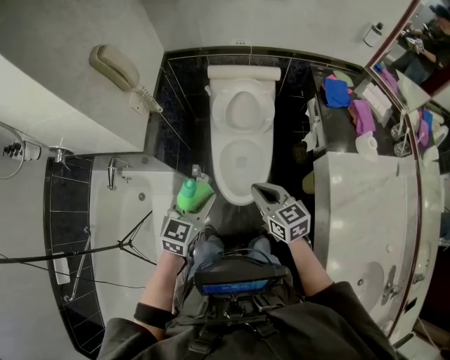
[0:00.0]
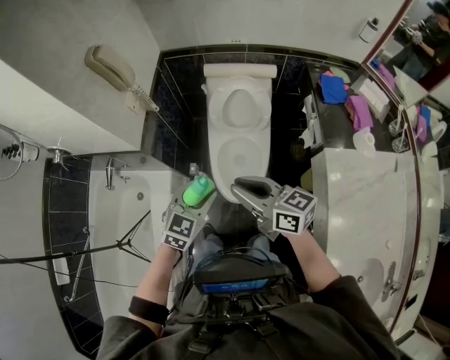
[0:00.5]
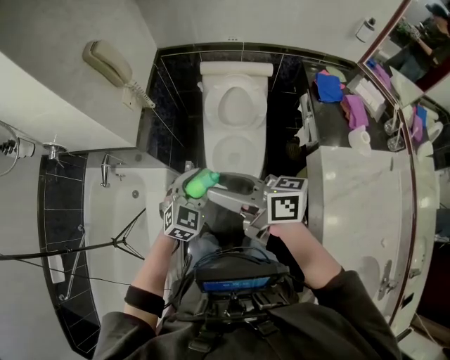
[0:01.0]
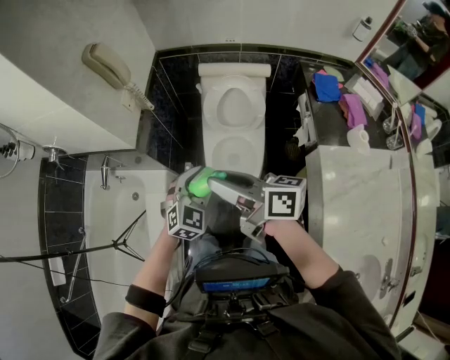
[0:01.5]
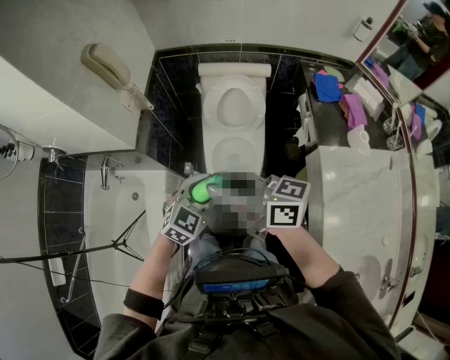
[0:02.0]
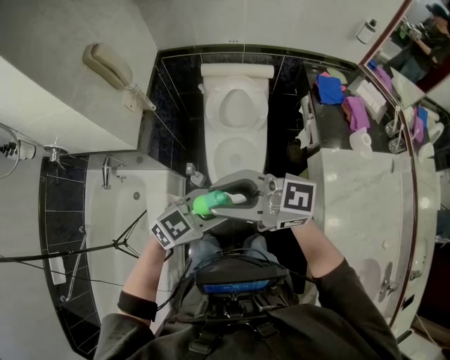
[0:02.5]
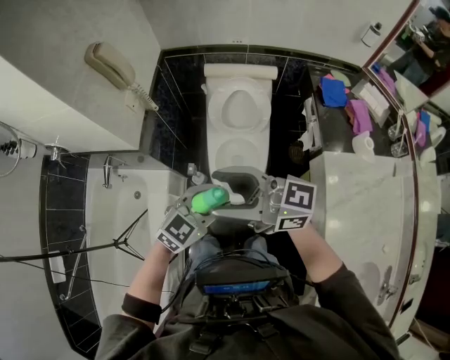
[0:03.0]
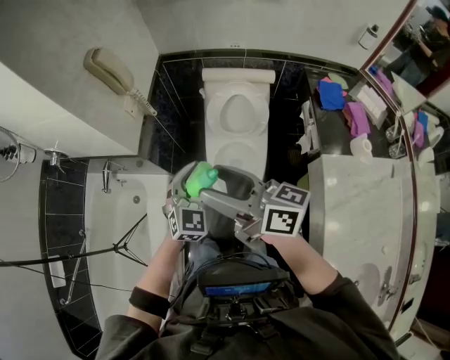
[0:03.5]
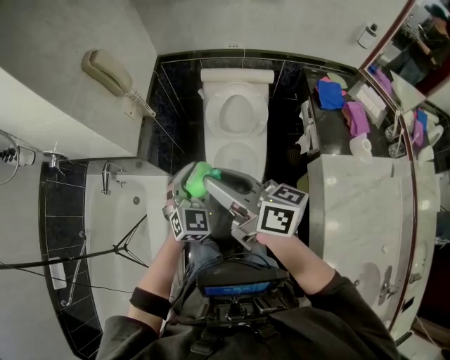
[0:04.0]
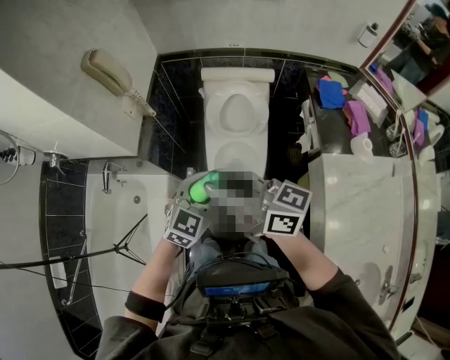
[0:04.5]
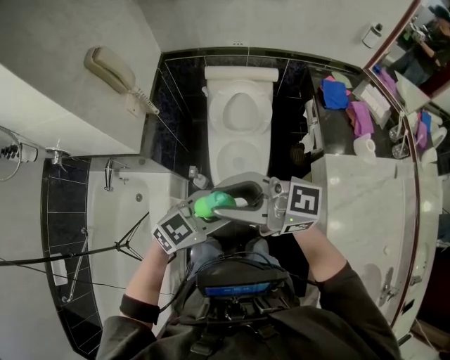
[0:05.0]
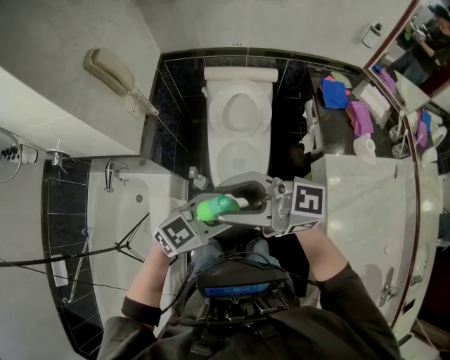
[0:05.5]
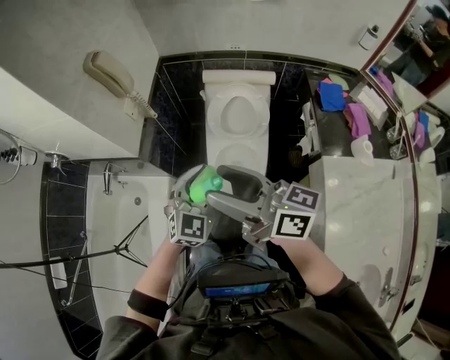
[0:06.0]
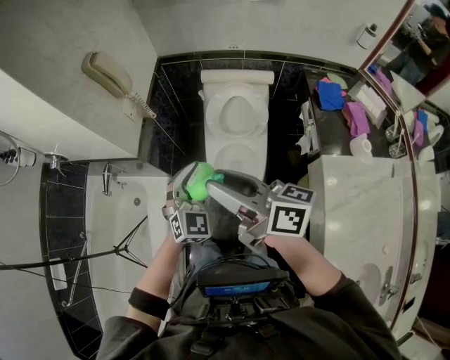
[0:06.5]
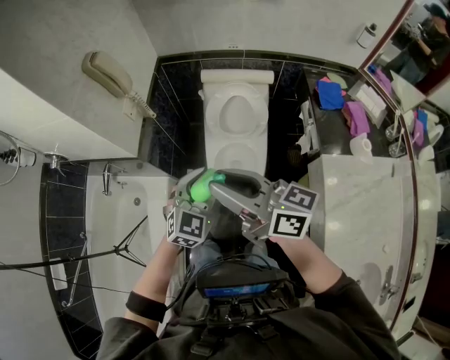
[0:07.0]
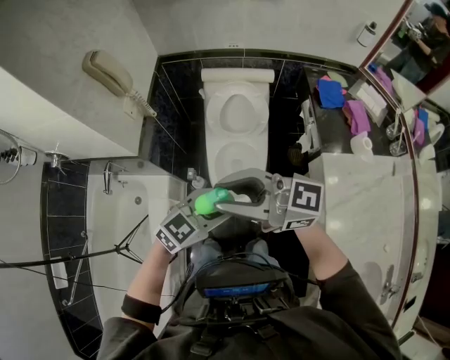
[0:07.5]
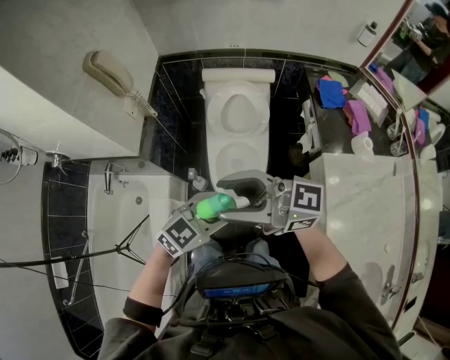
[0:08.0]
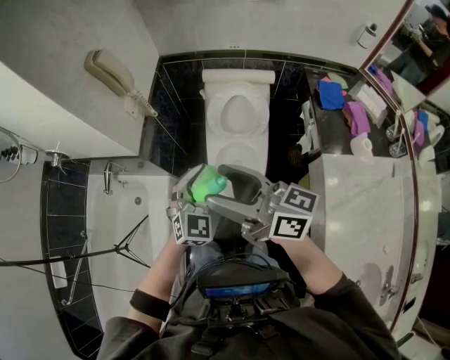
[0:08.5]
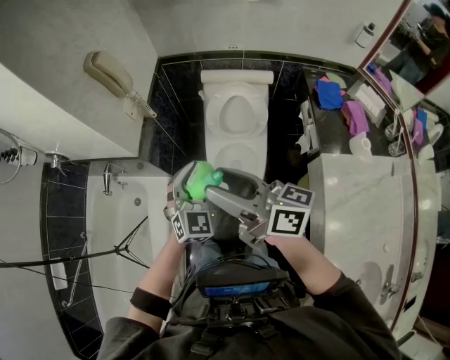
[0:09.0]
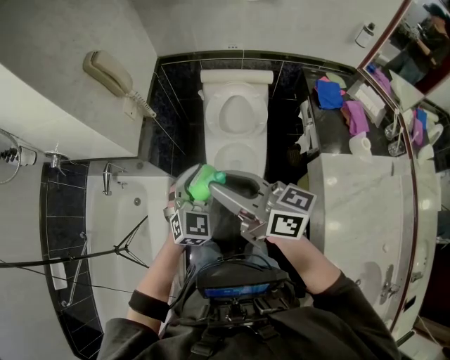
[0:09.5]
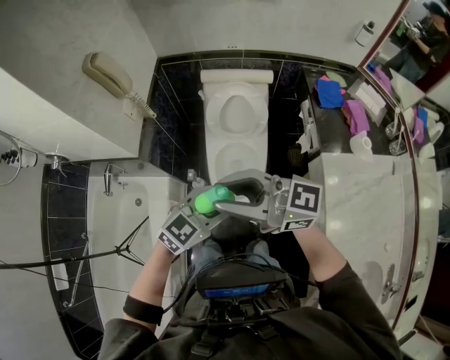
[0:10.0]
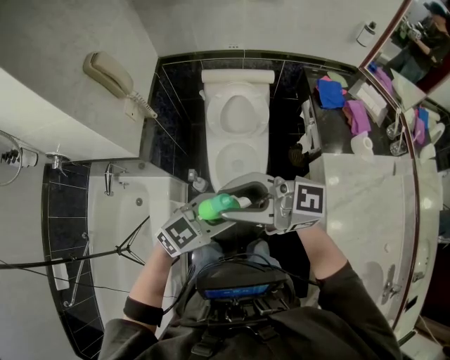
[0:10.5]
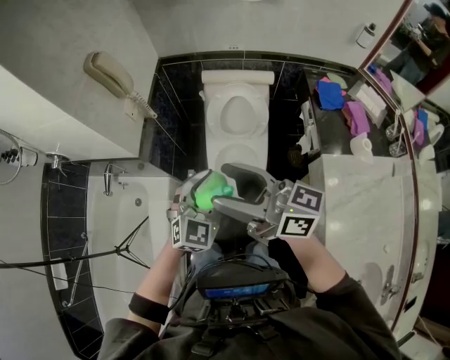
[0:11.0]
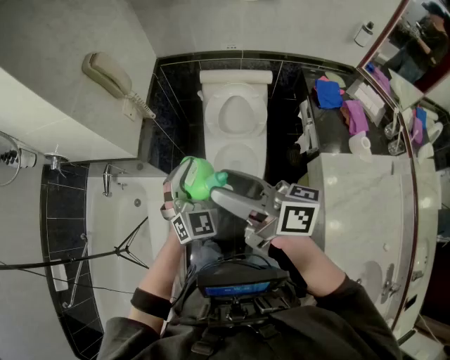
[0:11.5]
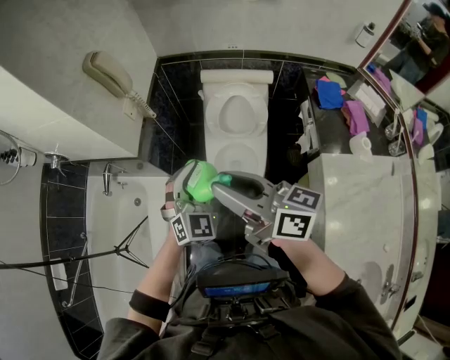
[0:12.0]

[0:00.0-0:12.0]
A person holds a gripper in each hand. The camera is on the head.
0.0 to 2.0 s: The right gripper moves upward and to the left, about 20 cm, rotates roughly 40 degrees, and opens its fingers, while the left gripper shifts approximately 5 cm to the right, and changes its angle by roughly 20 degrees.
2.0 to 4.0 s: The left gripper shifts by approximately 10 cm, and rotates about 30 degrees; the right gripper opens, then closes once more.
4.0 to 6.0 s: The right gripper opens.
6.0 to 8.0 s: The right gripper turns by about 30 degrees; the left gripper changes place by some 10 cm, and rotates approximately 40 degrees.
10.0 to 12.0 s: The left gripper changes place by some 10 cm, and changes its angle by approximately 50 degrees. Meanwhile the right gripper changes its angle by some 30 degrees, and opens, then closes once more.

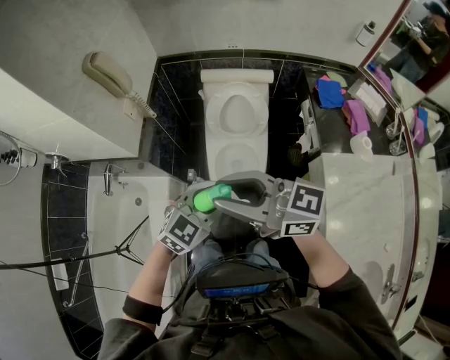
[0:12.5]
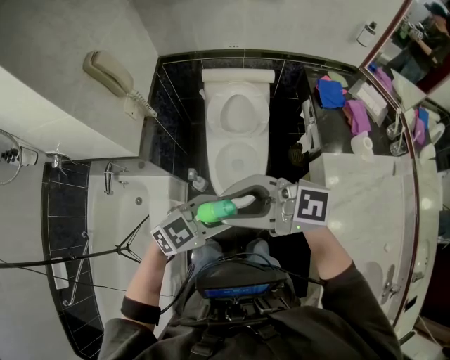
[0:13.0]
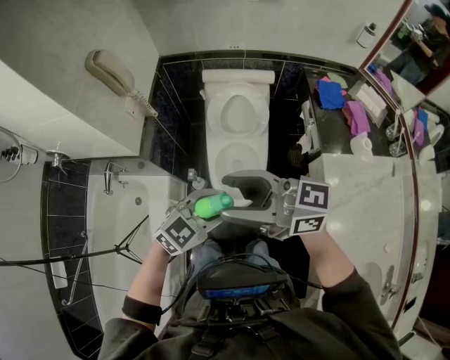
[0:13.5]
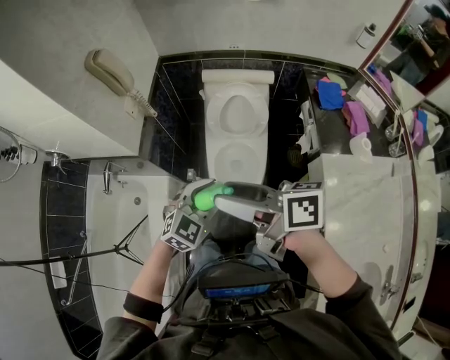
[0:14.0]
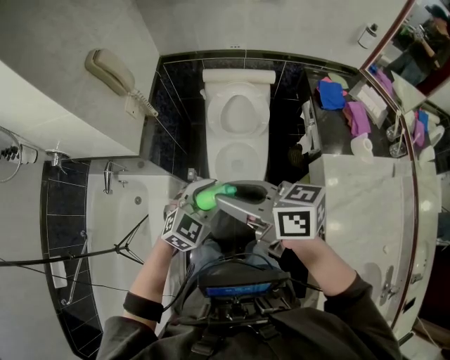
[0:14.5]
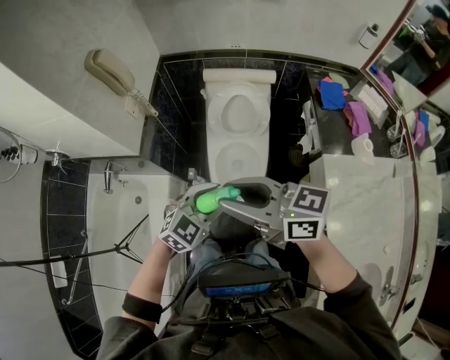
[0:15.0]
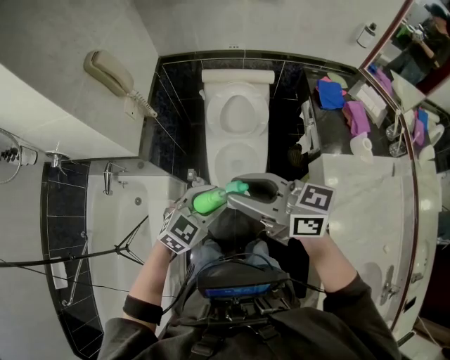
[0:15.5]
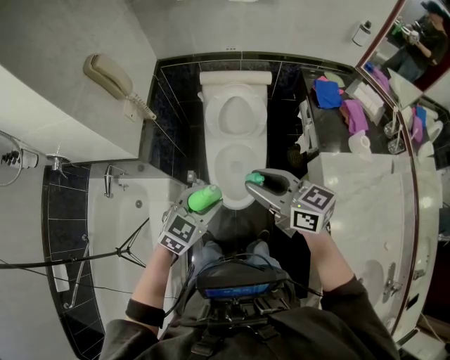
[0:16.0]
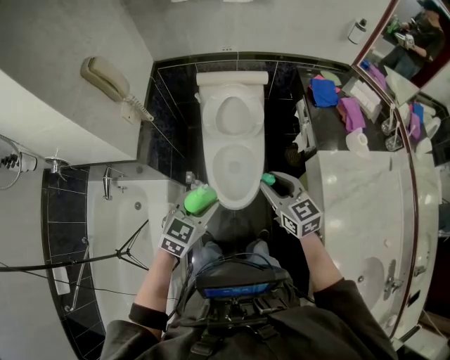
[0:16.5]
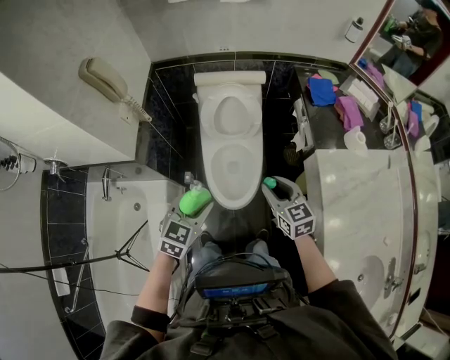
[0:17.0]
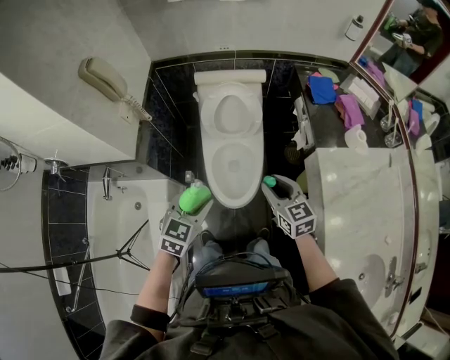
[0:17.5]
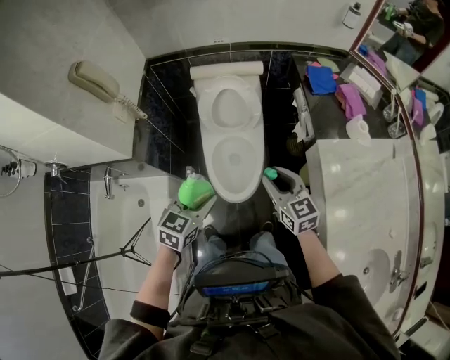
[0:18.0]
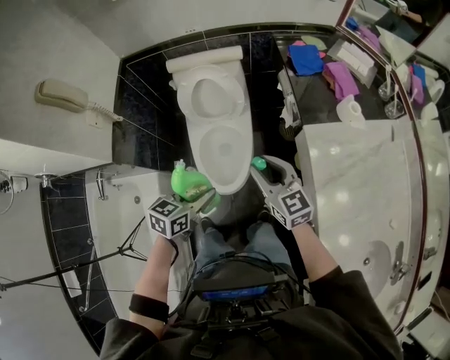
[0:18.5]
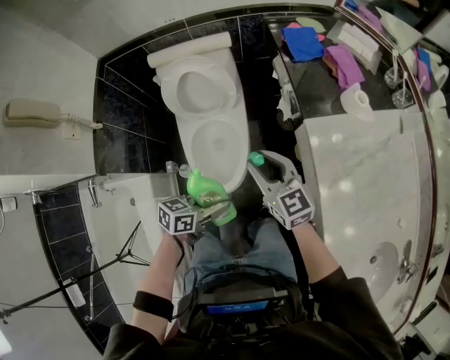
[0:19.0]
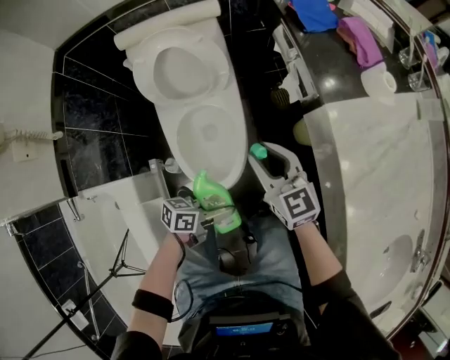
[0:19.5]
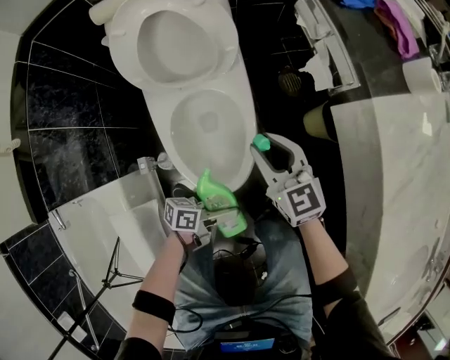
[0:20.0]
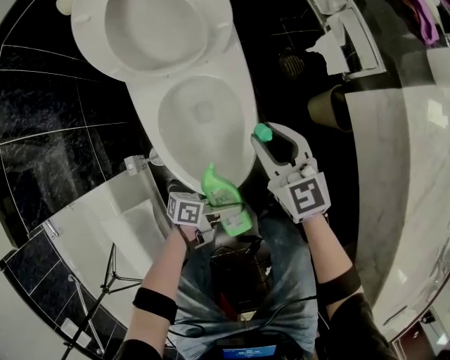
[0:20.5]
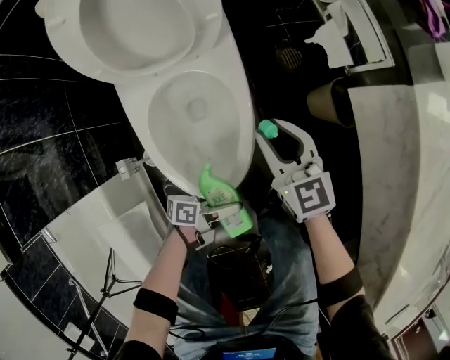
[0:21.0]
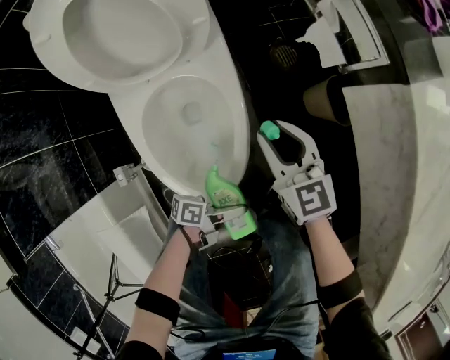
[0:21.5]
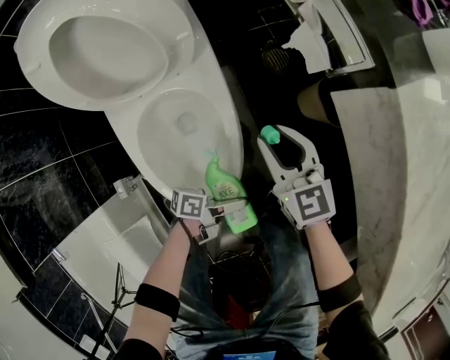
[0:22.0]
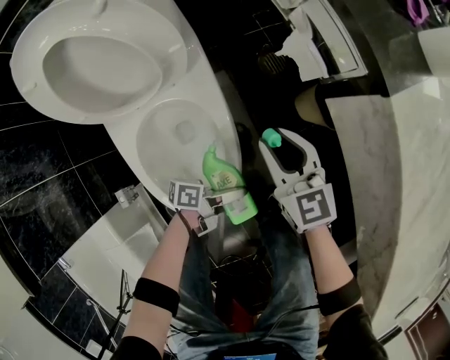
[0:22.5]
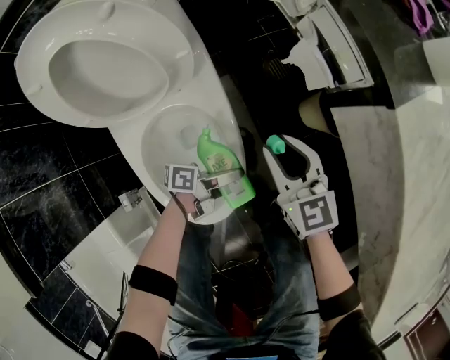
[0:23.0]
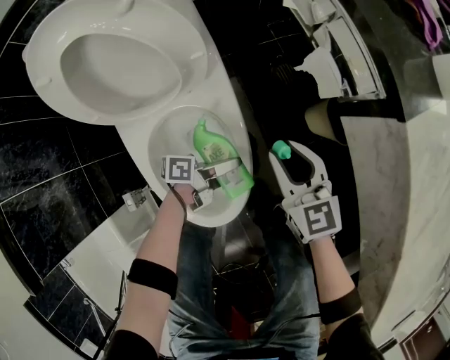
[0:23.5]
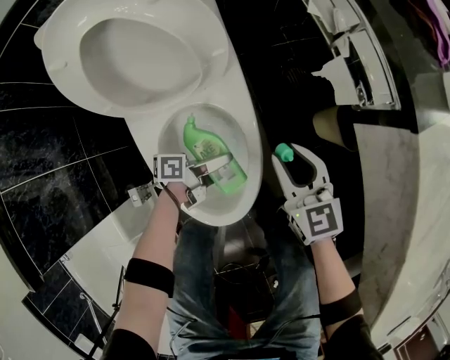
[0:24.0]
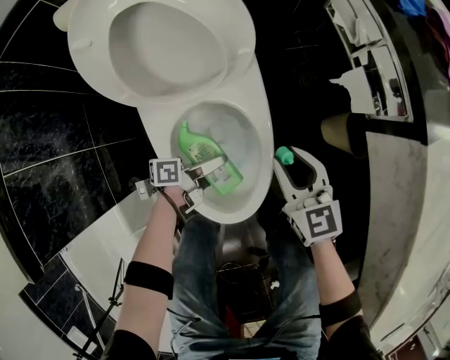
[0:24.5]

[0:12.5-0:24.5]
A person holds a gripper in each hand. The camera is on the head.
12.5 to 14.5 s: The right gripper swivels some 30 degrees, and opens, then closes again.
14.5 to 16.5 s: The right gripper is displaced downward and to the right by roughly 20 cm, and rotates roughly 40 degrees.
16.5 to 18.5 s: The left gripper shifts approximately 10 cm to the right and downward, and turns by approximately 30 degrees; the right gripper shifts roughly 10 cm to the right.
18.5 to 20.5 s: The grippers both shift downward by about 40 cm. The left gripper turns by approximately 60 degrees.
20.5 to 22.5 s: The left gripper is displaced forward by about 10 cm, while the right gripper travels forward and to the right by some 10 cm.
22.5 to 24.5 s: The right gripper shifts some 10 cm to the left. The left gripper travels to the left by roughly 20 cm, and turns by some 20 degrees.

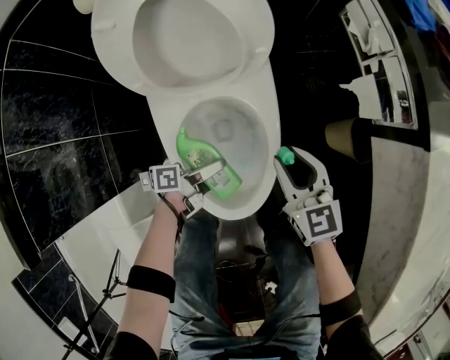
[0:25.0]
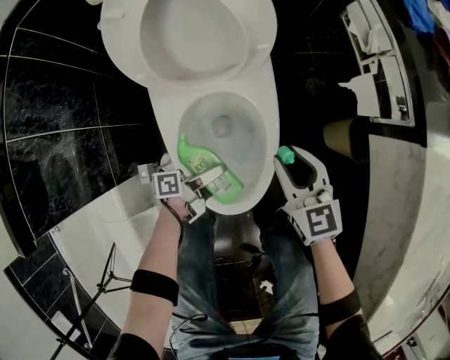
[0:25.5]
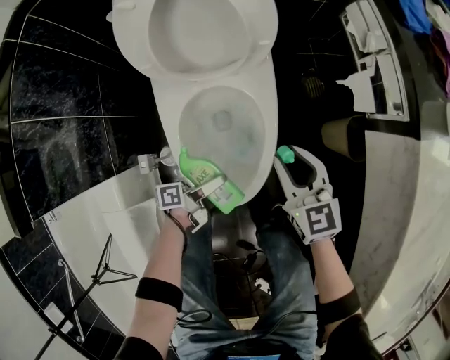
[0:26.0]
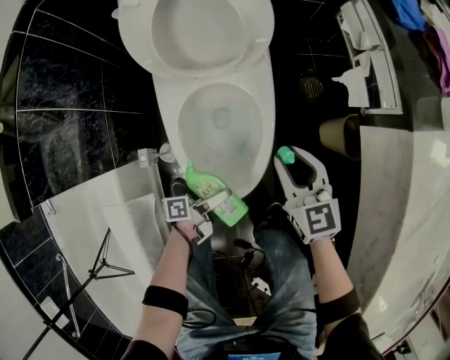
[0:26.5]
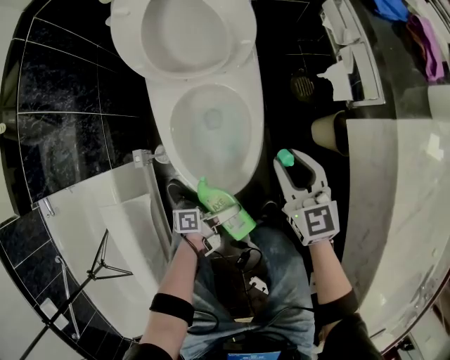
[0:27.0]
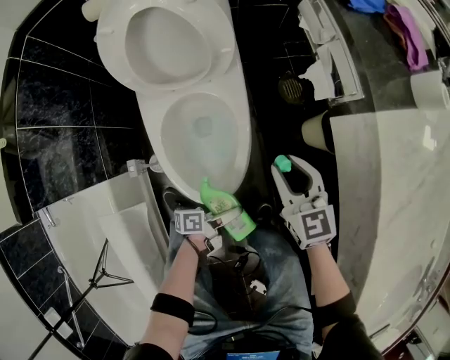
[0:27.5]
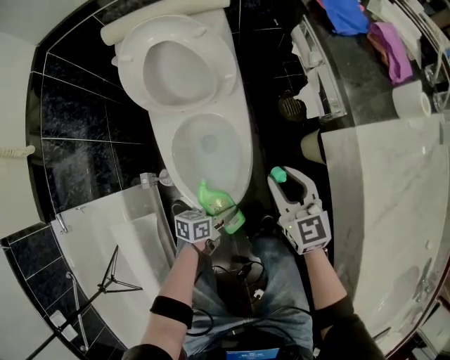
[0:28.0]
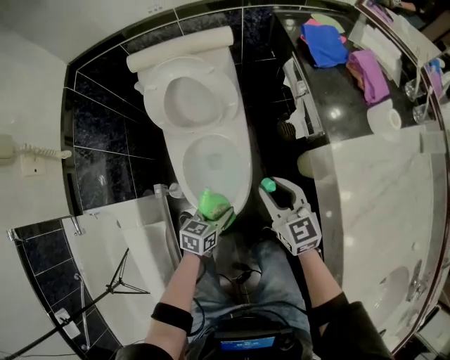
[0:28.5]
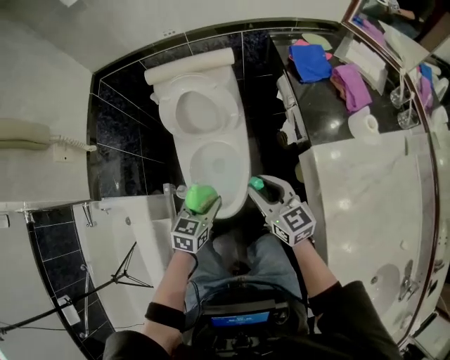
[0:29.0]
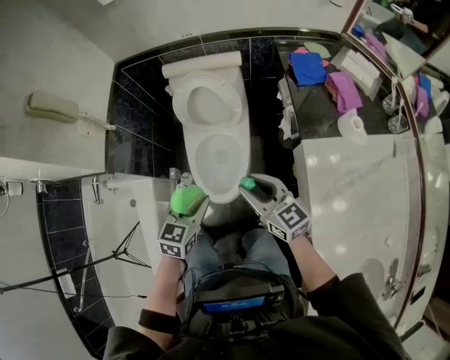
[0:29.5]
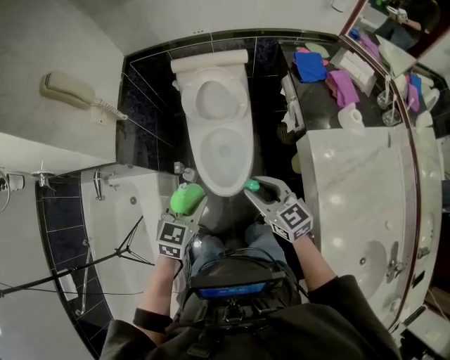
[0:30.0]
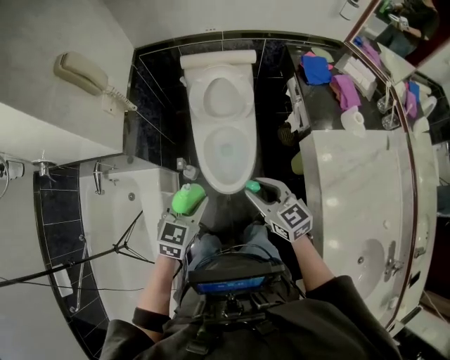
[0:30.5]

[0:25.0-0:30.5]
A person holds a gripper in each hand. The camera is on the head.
25.0 to 27.0 s: The left gripper moves backward and to the right, approximately 25 cm. The right gripper is displaced to the right, upward and backward by about 10 cm.
27.0 to 28.5 s: The right gripper shifts roughly 15 cm upward, while the left gripper moves upward and forward, approximately 20 cm, and rolls clockwise, seen from behind, by roughly 60 degrees.
28.5 to 30.5 s: The left gripper travels upward by about 35 cm, and swivels roughly 30 degrees. The right gripper goes about 30 cm upward, backward and to the left.
